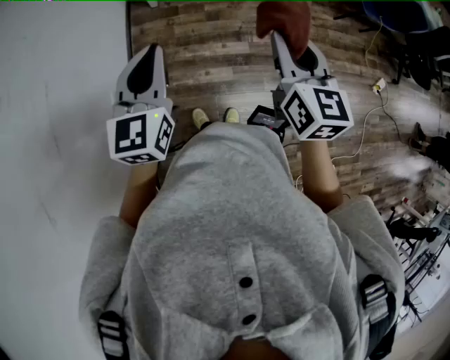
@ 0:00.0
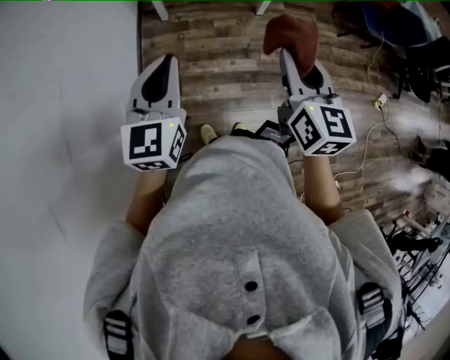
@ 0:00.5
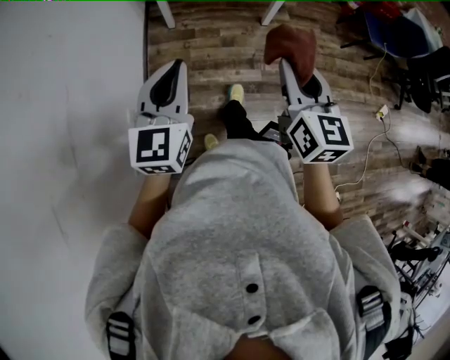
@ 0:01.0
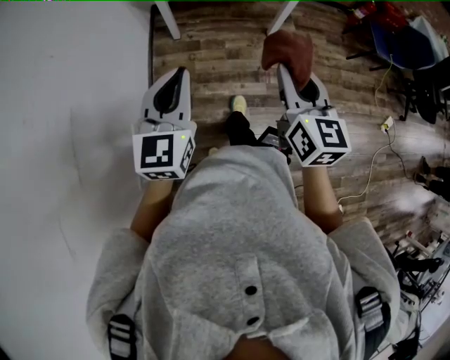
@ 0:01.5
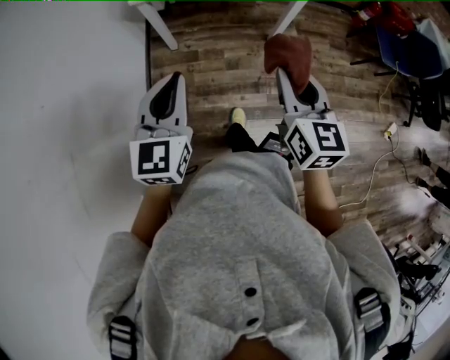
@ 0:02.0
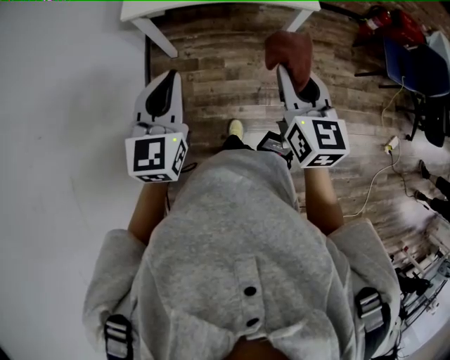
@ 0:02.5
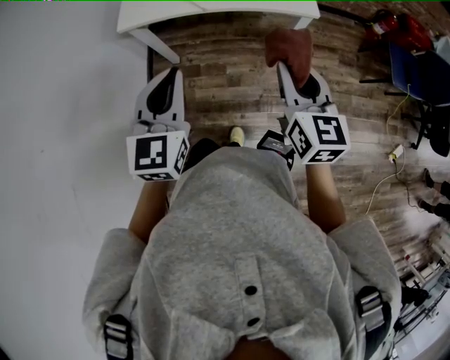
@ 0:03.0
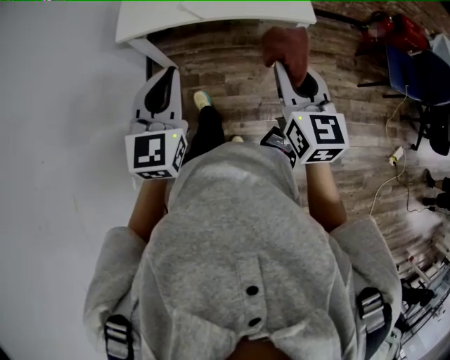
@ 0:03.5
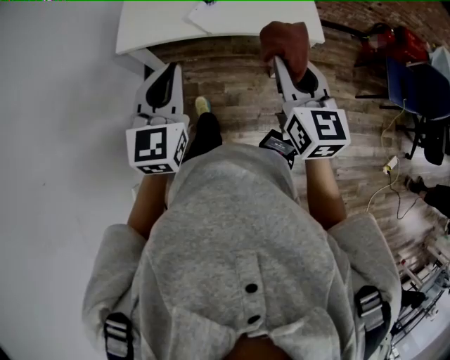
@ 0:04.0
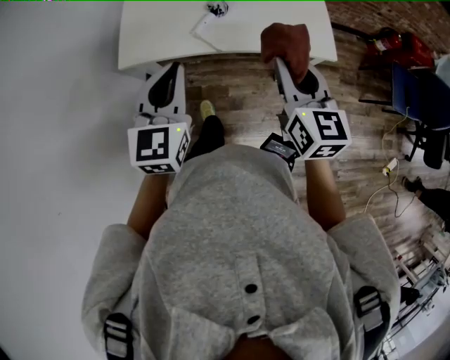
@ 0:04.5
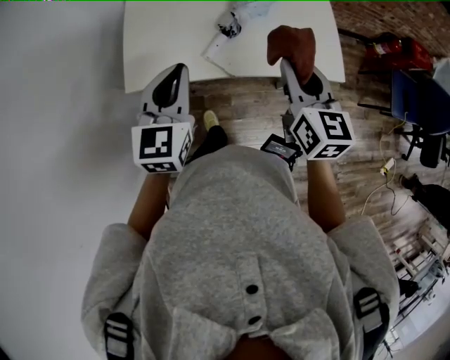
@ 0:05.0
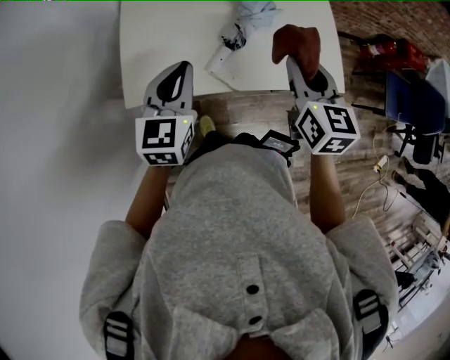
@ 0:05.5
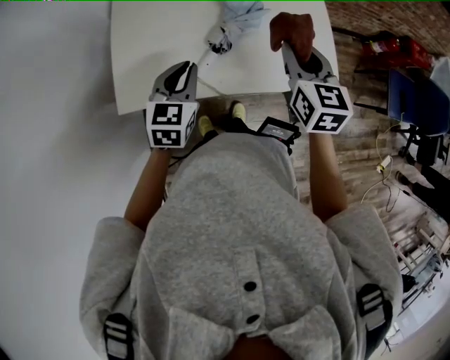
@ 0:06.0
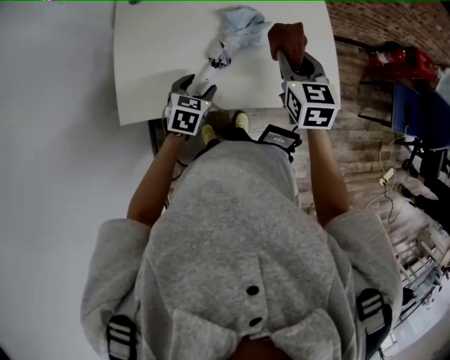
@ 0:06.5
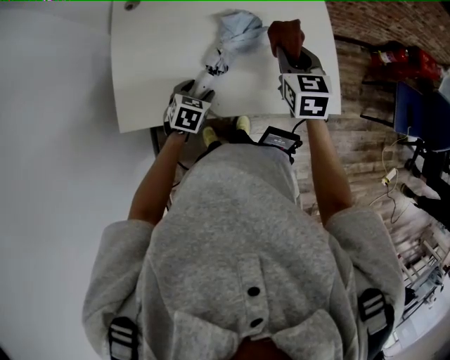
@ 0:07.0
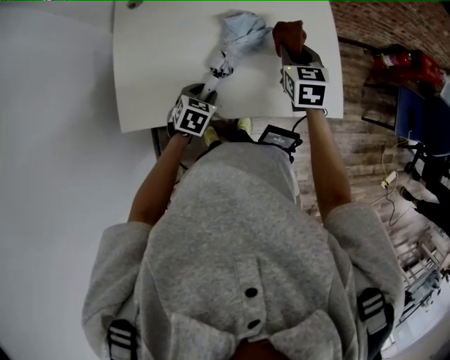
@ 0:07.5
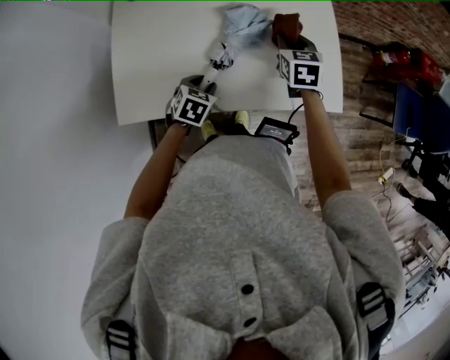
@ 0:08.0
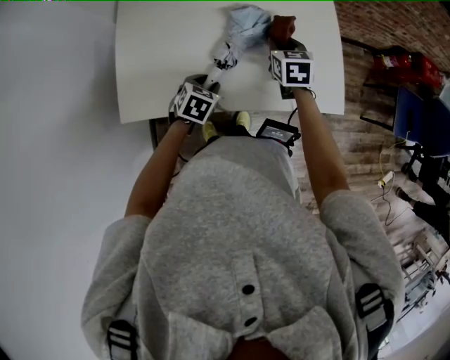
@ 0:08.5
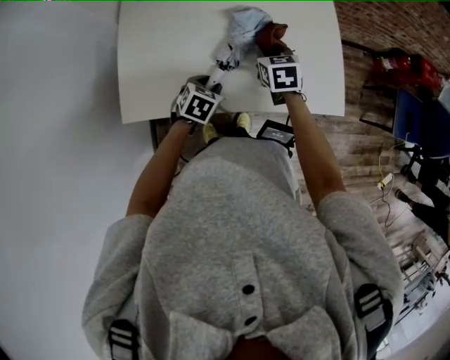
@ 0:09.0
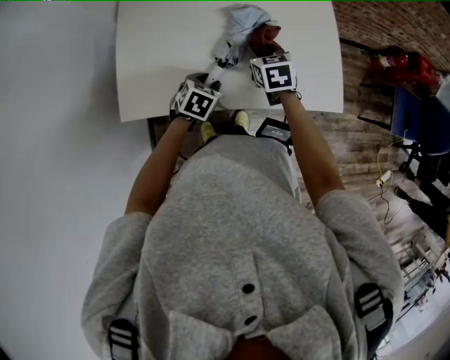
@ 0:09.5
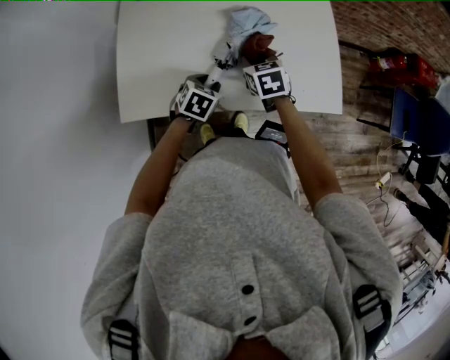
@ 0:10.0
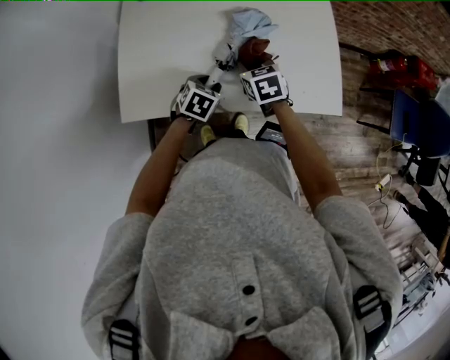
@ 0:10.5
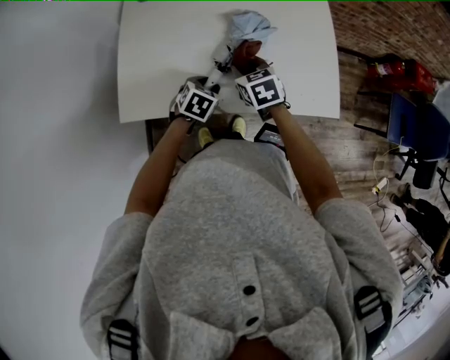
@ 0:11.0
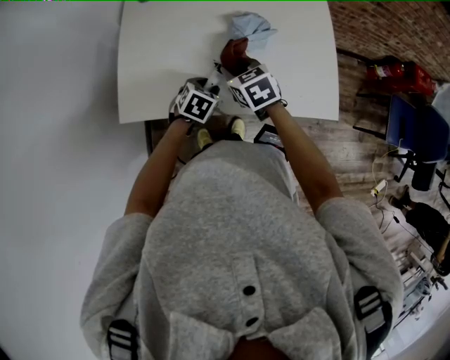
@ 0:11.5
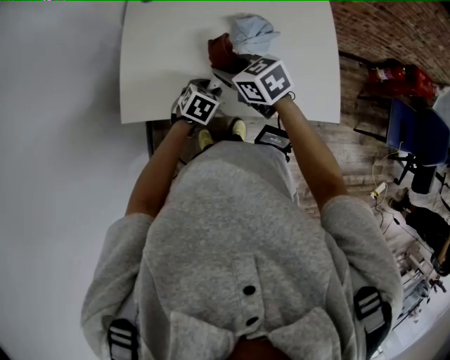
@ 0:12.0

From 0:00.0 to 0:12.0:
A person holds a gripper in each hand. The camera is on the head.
From 0:00.0 to 0:02.0: Both grippers travel together forward, some 20 cm.
From 0:02.0 to 0:04.0: The grippers both shift forward by approximately 30 cm.
From 0:04.0 to 0:06.0: Both grippers move forward, approximately 35 cm. The left gripper rotates roughly 20 degrees.
From 0:06.0 to 0:08.0: The left gripper travels downward by about 15 cm, turns by approximately 30 degrees, and opens up, while the right gripper travels downward and forward by some 20 cm.
From 0:08.0 to 0:10.0: The right gripper is displaced to the left, backward and downward by some 15 cm.
From 0:10.0 to 0:12.0: The right gripper heads to the left and upward, covering roughly 15 cm, and turns by roughly 30 degrees.

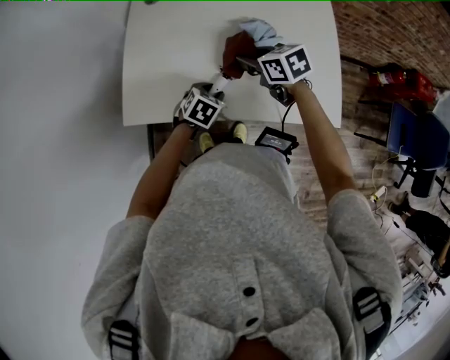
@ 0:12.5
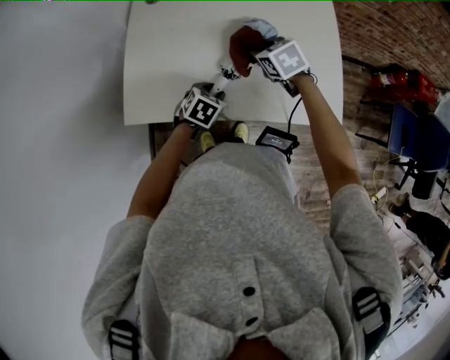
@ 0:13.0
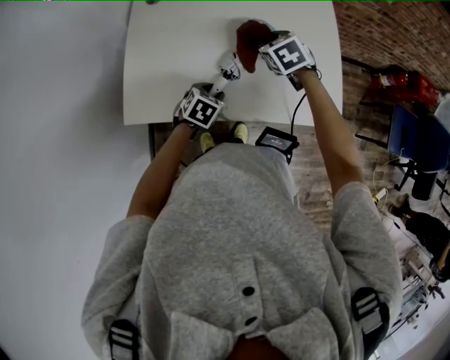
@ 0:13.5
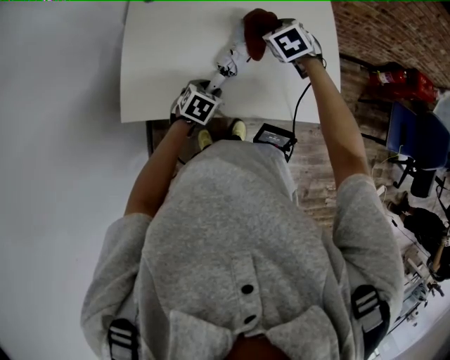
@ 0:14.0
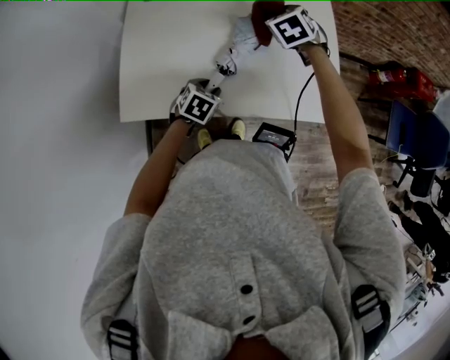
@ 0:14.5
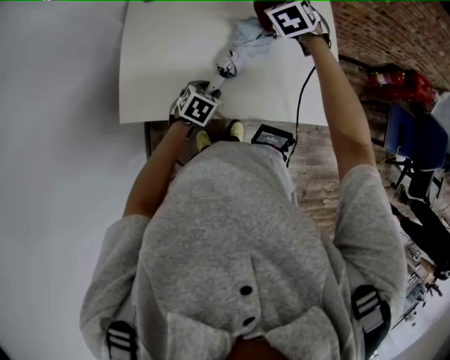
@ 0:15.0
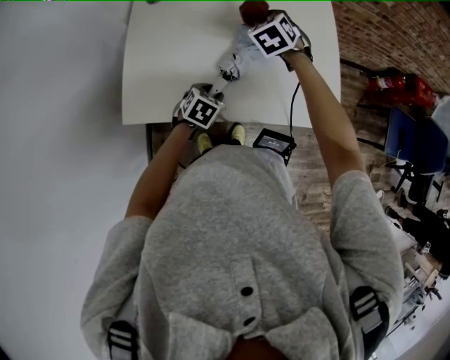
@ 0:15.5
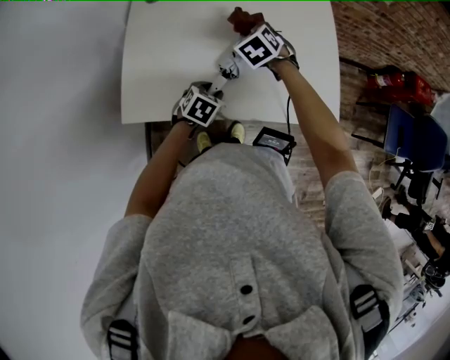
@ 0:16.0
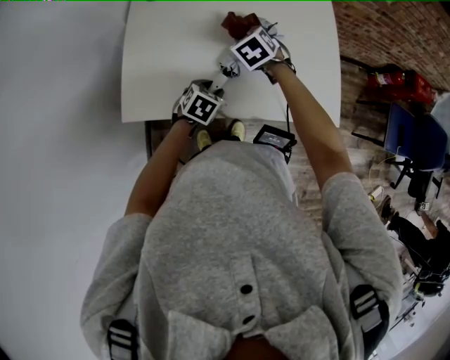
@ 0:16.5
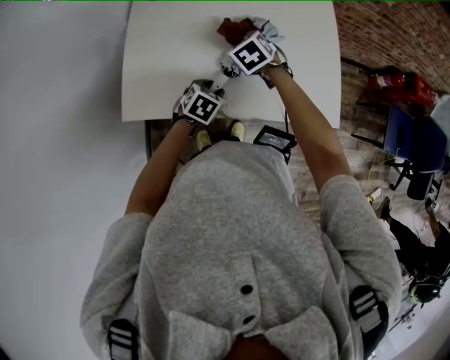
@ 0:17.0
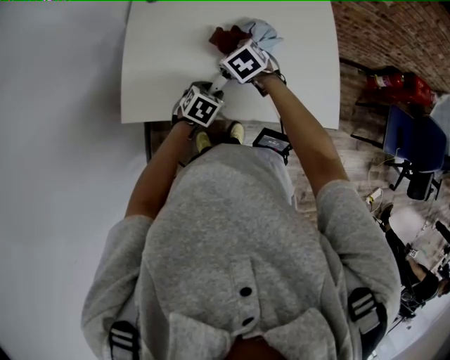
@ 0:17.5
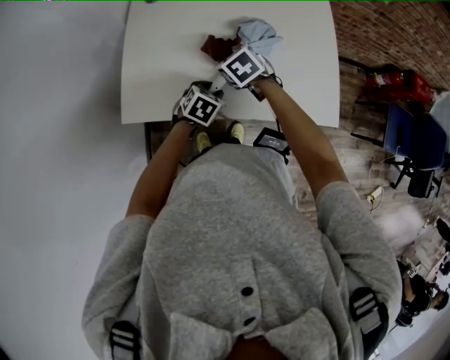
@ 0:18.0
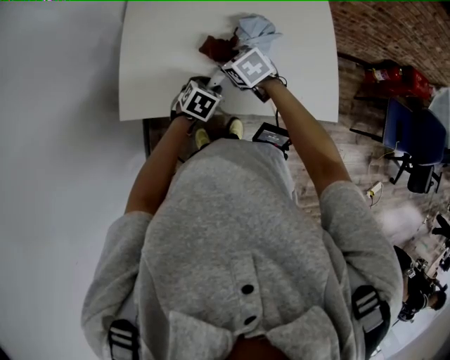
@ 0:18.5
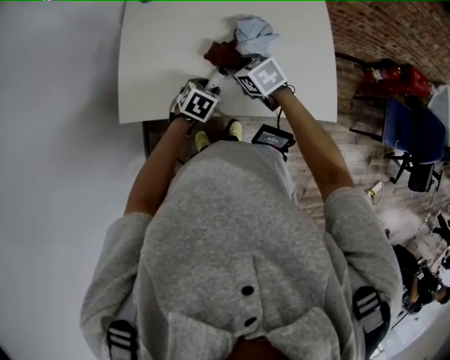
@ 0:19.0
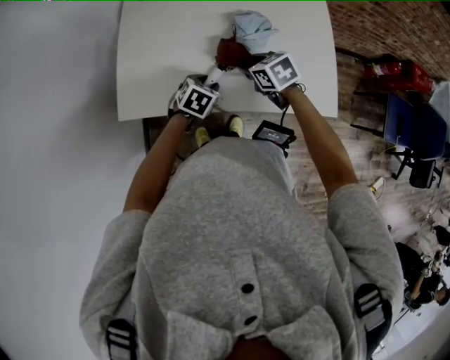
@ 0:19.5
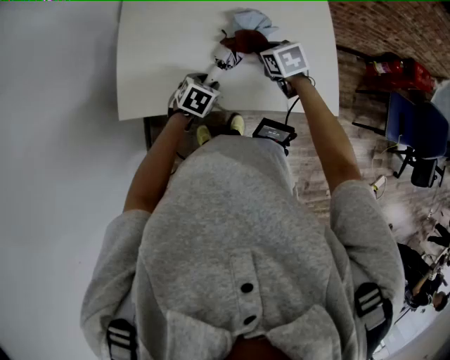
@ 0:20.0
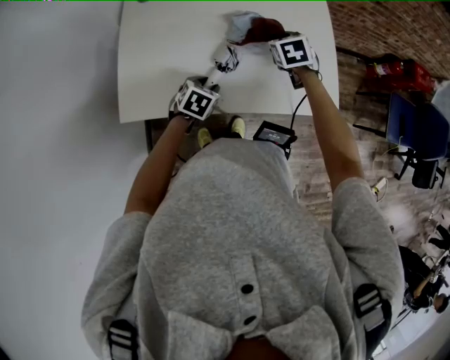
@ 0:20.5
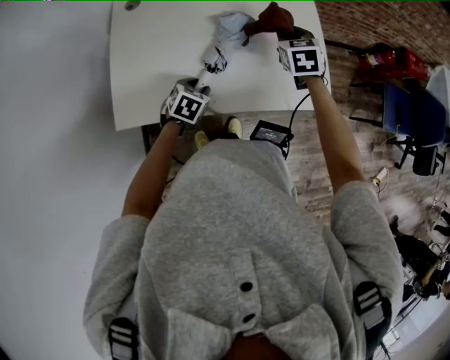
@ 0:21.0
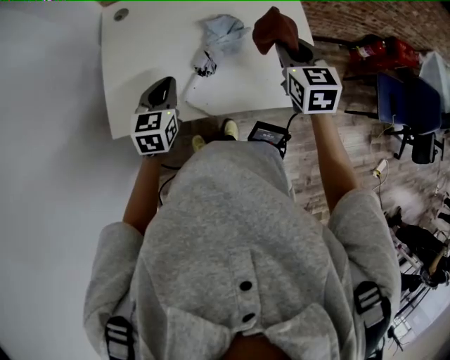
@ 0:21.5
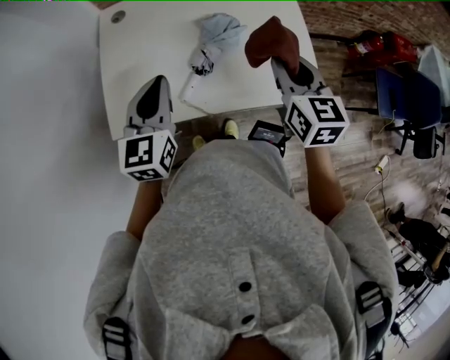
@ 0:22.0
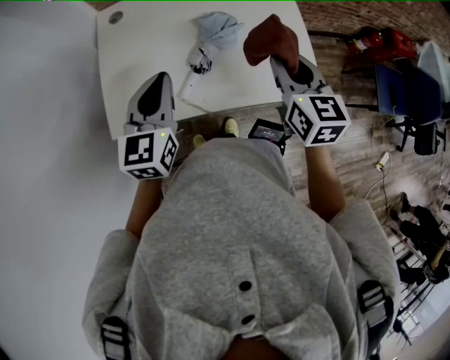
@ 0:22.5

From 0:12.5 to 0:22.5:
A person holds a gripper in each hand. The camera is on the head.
From 0:12.5 to 0:14.5: The right gripper moves some 15 cm, and turns by about 40 degrees.
From 0:14.5 to 0:16.5: The right gripper goes some 15 cm to the left, backward and downward.
From 0:16.5 to 0:18.5: The right gripper shifts roughly 10 cm backward.
From 0:18.5 to 0:20.5: The right gripper shifts about 20 cm to the right and forward, and changes its angle by approximately 30 degrees.
From 0:20.5 to 0:22.5: The left gripper heads upward, covering about 25 cm, tilts its fingers approximately 40 degrees upward, and closes up, while the right gripper shifts about 25 cm upward and backward, and points its fingers some 30 degrees further upward.

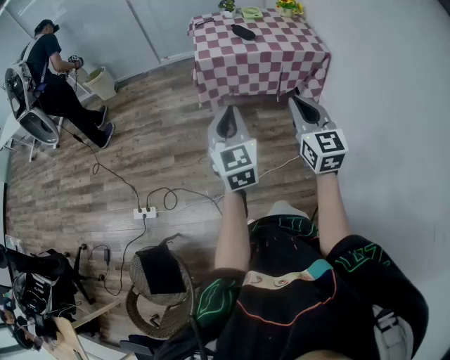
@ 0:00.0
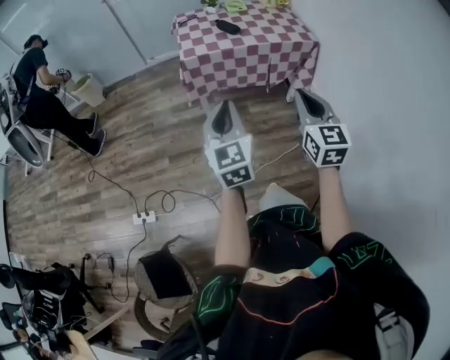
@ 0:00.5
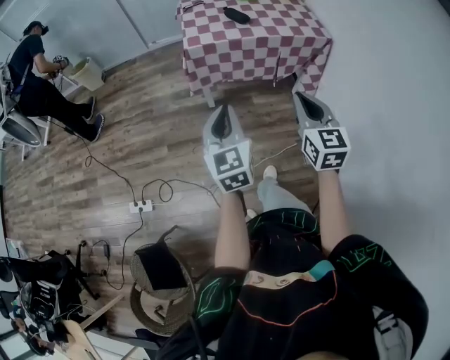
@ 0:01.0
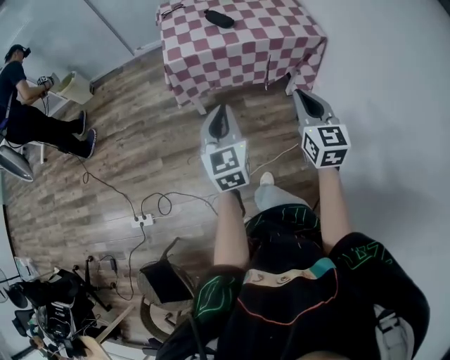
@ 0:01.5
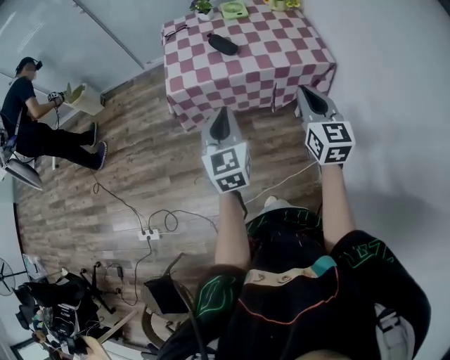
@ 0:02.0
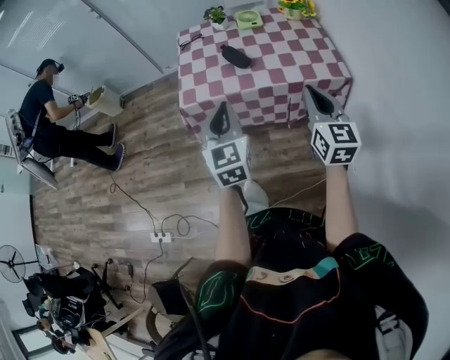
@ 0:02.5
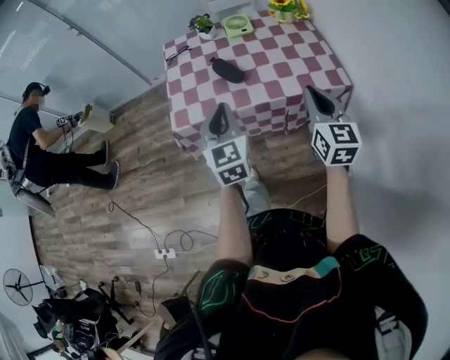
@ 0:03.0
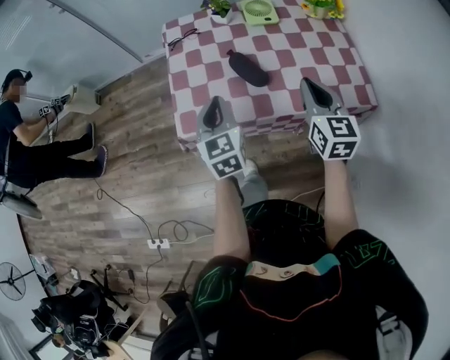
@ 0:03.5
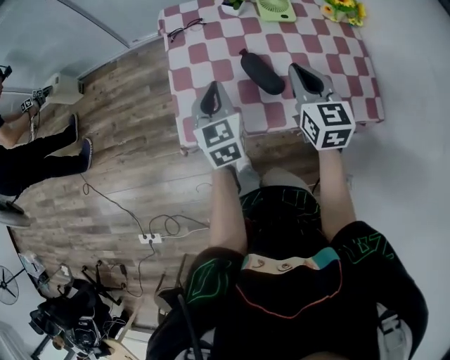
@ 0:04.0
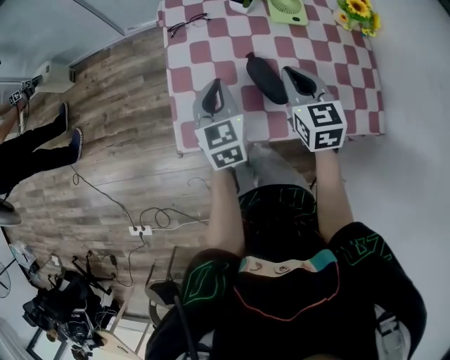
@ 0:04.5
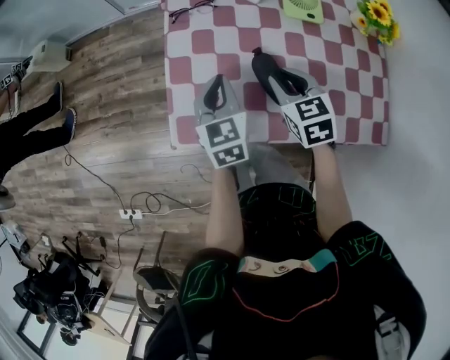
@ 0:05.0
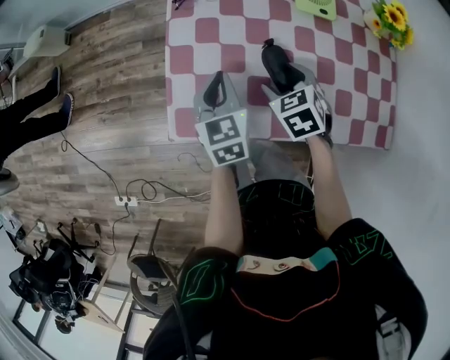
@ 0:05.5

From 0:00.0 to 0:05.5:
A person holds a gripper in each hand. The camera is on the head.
From 0:00.0 to 0:02.0: Both grippers move forward and to the right, some 30 cm.
From 0:02.0 to 0:03.5: The two grippers go about 30 cm forward.
From 0:03.5 to 0:05.5: The left gripper travels forward and downward by approximately 15 cm. The right gripper goes some 25 cm downward, forward and to the left, tilts its fingers some 40 degrees downward, and opens.
